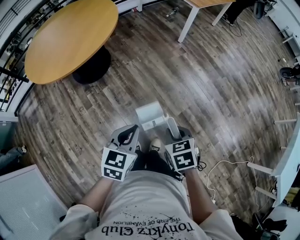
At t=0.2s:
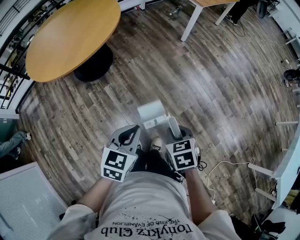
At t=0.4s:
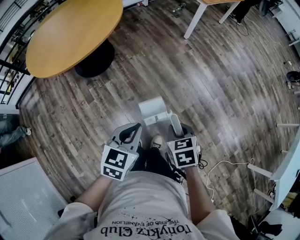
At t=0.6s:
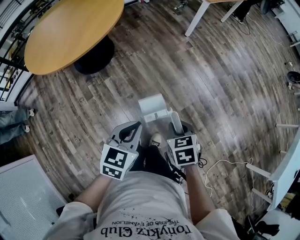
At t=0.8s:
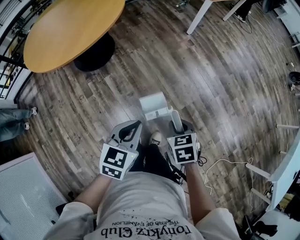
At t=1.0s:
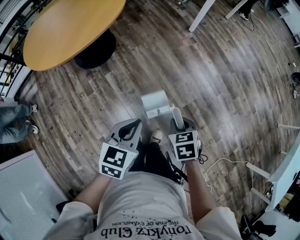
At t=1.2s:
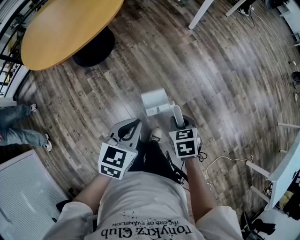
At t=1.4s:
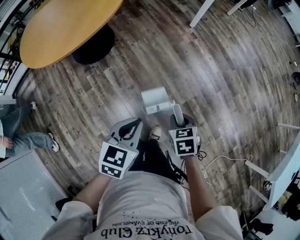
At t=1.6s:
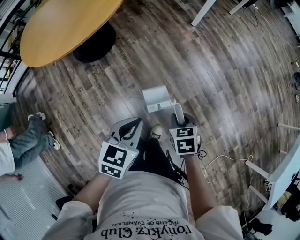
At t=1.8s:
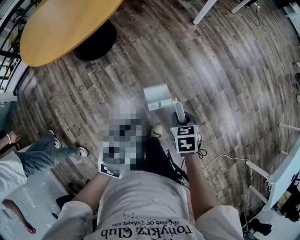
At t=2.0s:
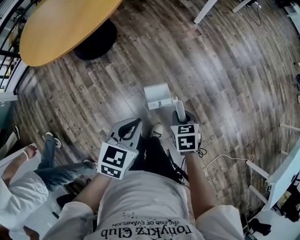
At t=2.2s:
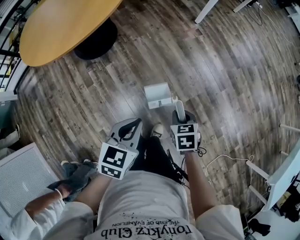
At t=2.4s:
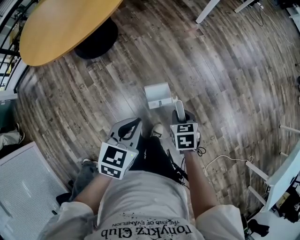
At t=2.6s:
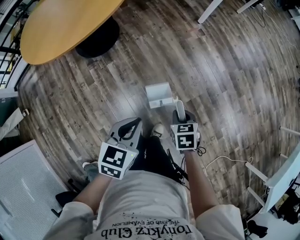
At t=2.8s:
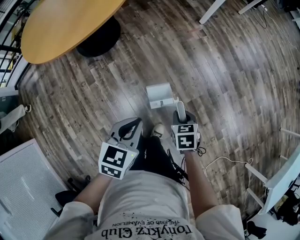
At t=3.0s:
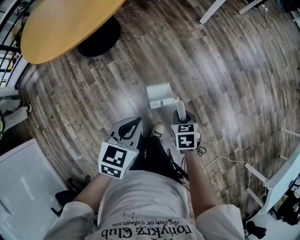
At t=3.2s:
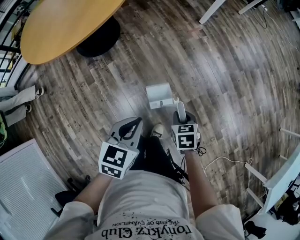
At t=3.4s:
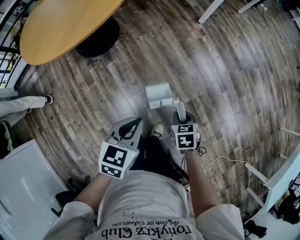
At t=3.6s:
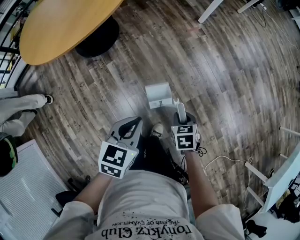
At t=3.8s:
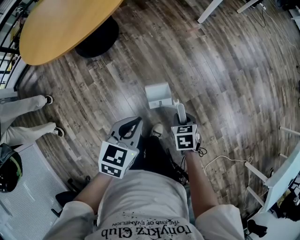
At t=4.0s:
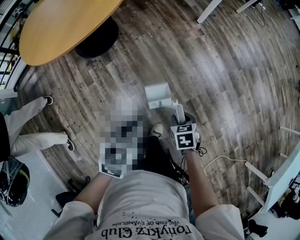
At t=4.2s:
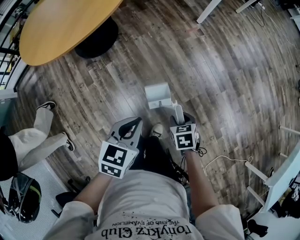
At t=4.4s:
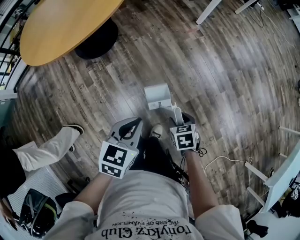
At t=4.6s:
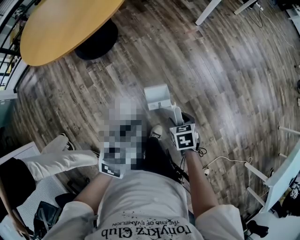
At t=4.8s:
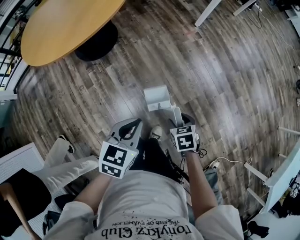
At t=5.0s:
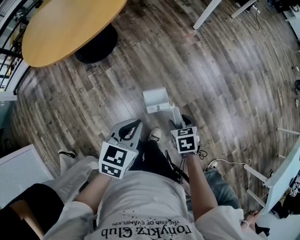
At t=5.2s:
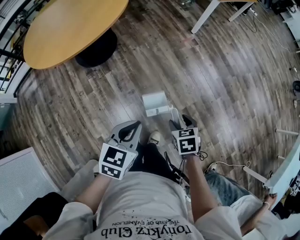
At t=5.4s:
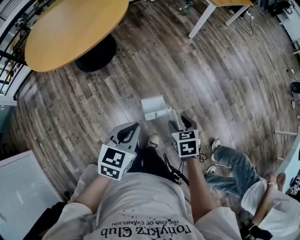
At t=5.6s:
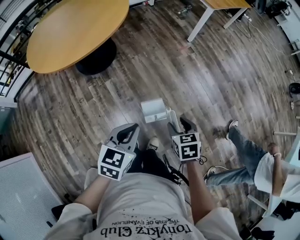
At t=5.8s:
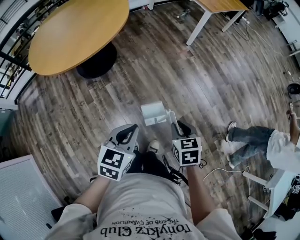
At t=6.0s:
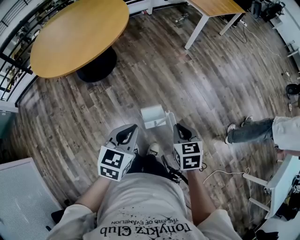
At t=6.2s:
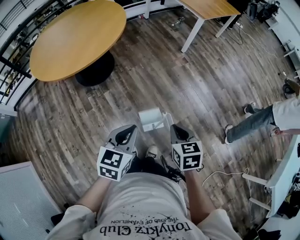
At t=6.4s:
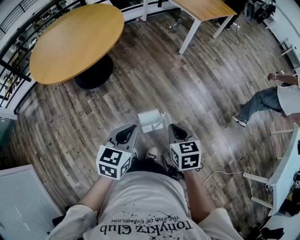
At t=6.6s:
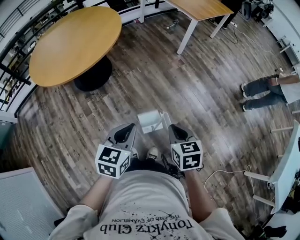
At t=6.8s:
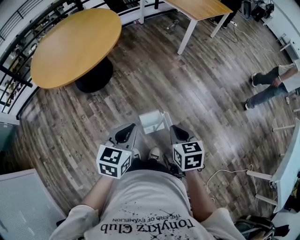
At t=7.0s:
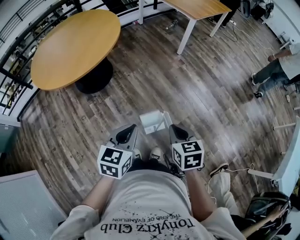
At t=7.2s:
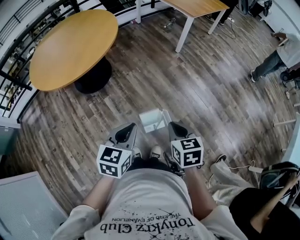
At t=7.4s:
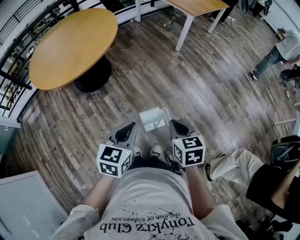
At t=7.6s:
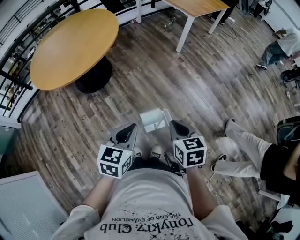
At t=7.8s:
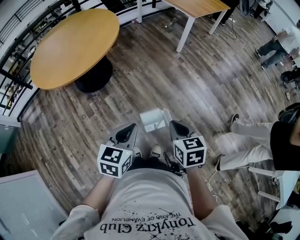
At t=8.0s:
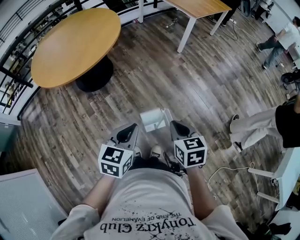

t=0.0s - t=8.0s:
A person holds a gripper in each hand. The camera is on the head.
t=0.0s - t=1.6s: The right gripper travels downward and forward by some 15 cm. The left gripper is displaced downward by roughly 5 cm.
t=1.6s - t=3.2s: The right gripper heads downward, covering roughly 5 cm.
t=3.2s - t=4.8s: The right gripper opens its fingers.
t=4.8s - t=6.4s: The left gripper travels upward by about 10 cm. The right gripper travels upward by roughly 20 cm, swivels some 20 degrees, and closes its fingers.
t=6.4s - t=8.0s: The grippers make only small movements.

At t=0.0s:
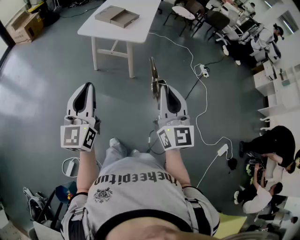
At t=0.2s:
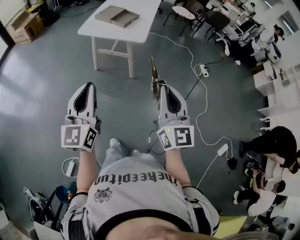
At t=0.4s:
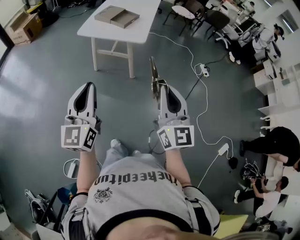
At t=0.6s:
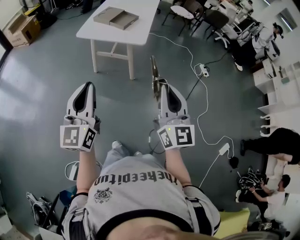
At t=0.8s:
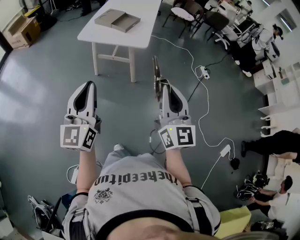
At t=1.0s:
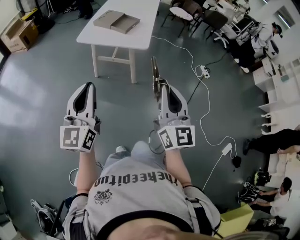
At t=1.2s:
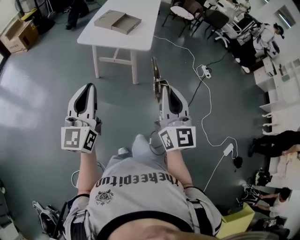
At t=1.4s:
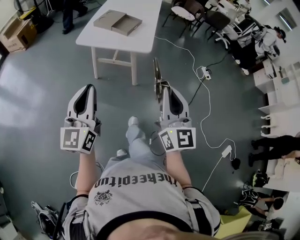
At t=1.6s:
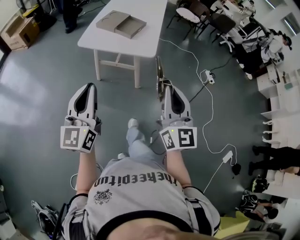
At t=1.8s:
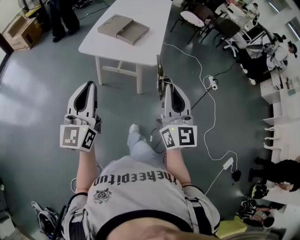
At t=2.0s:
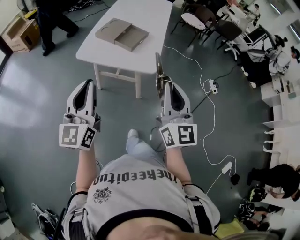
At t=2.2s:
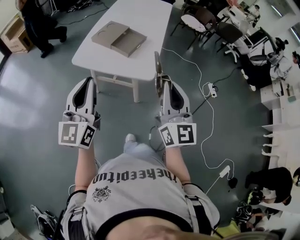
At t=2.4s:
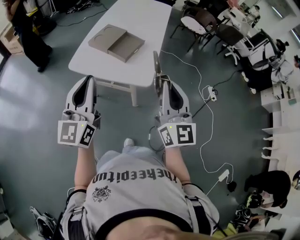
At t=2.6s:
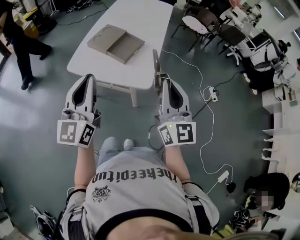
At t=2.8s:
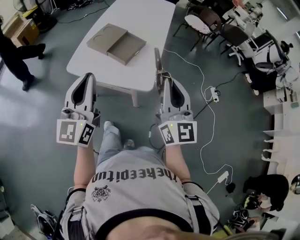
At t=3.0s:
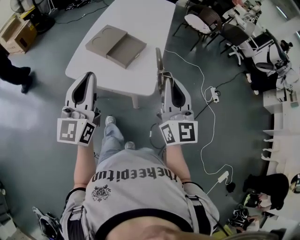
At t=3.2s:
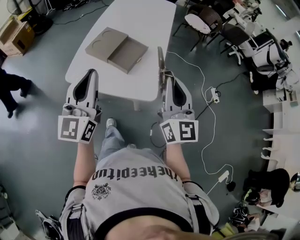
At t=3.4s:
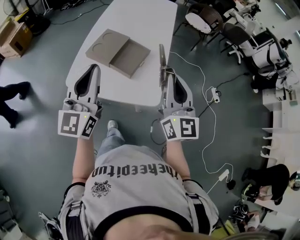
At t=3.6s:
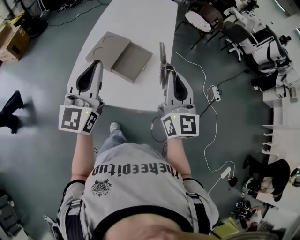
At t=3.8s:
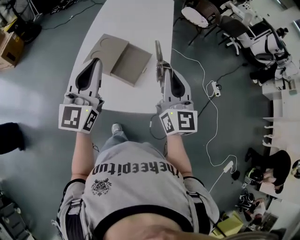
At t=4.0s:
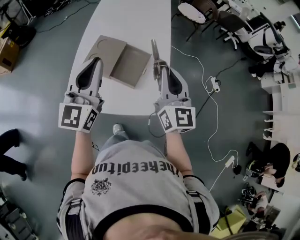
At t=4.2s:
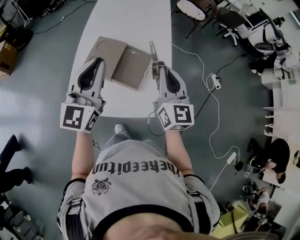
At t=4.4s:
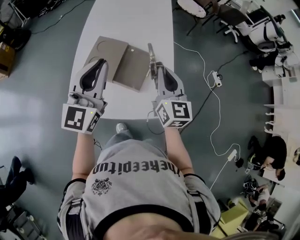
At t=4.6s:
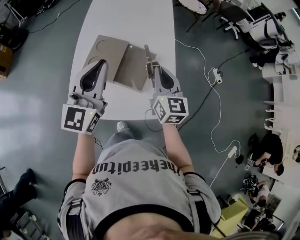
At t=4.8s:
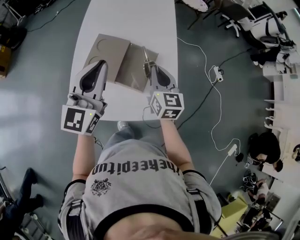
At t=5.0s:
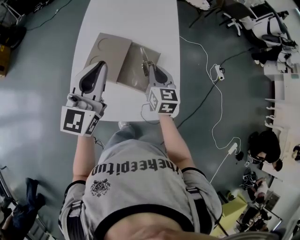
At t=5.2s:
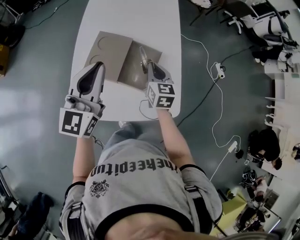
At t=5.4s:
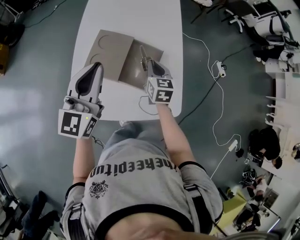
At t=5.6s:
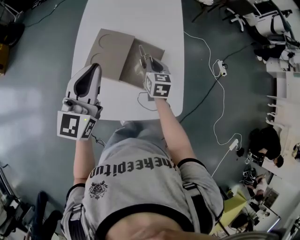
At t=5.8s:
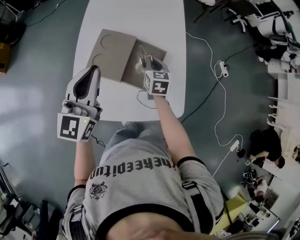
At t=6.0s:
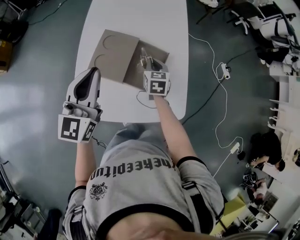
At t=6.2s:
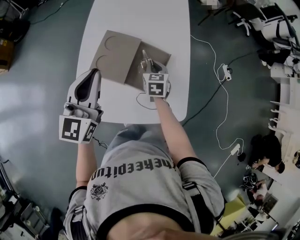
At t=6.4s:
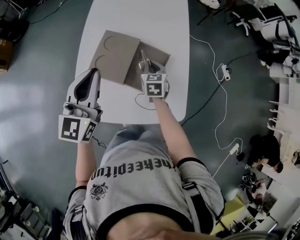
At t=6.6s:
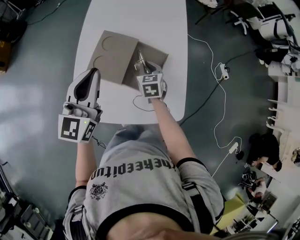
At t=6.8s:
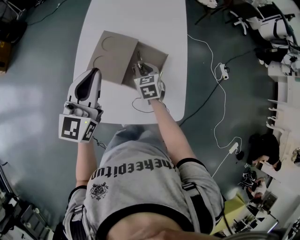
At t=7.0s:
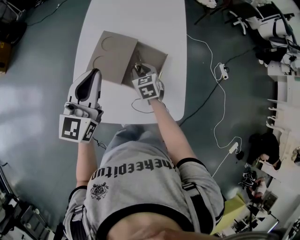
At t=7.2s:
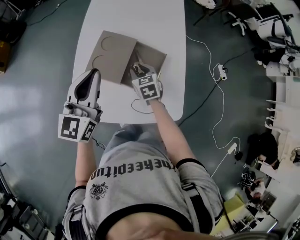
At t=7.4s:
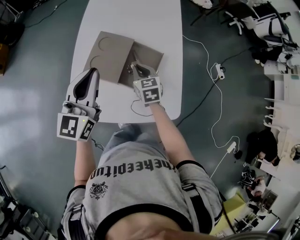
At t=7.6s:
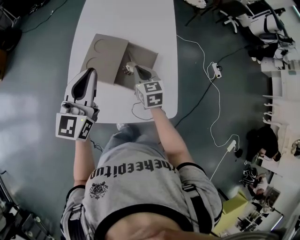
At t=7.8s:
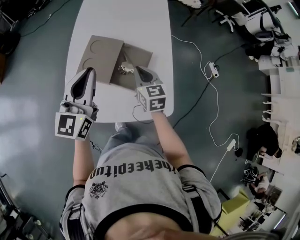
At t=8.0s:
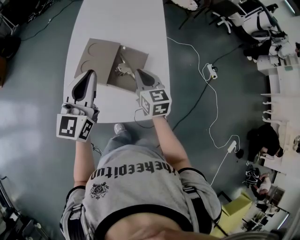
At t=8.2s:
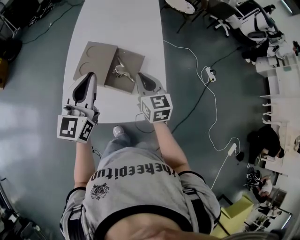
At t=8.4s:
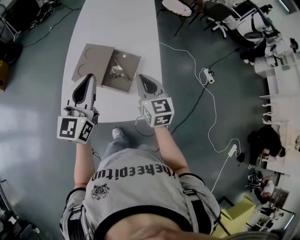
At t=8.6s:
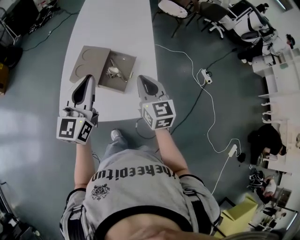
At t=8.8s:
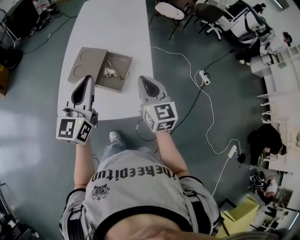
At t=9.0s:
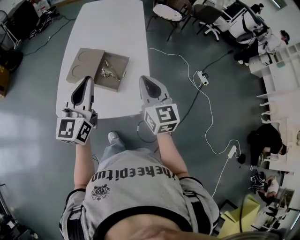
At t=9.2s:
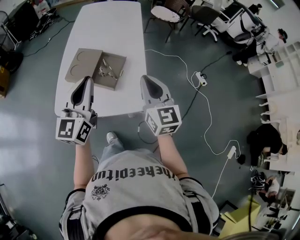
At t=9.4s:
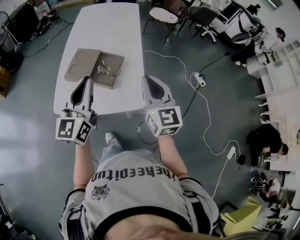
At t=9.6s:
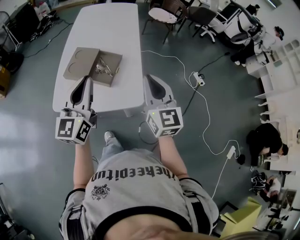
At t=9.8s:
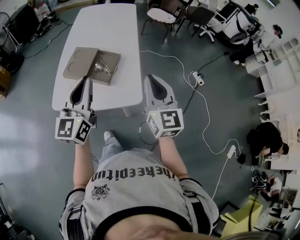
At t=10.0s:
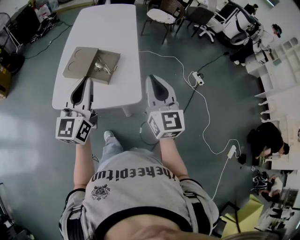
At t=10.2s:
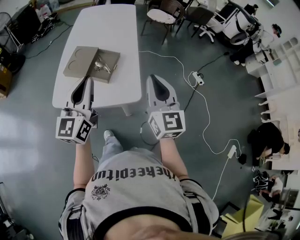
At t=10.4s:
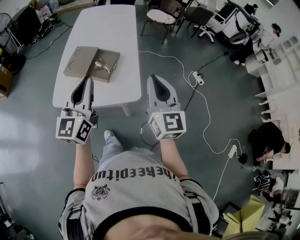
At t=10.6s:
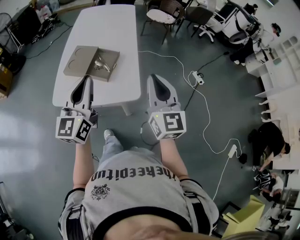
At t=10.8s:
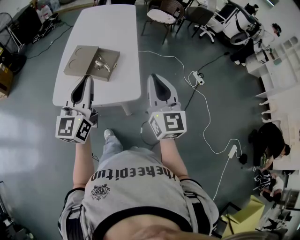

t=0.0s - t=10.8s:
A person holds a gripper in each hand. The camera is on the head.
t=0.0s - t=1.6s: Both grippers travel together forward, approximately 20 cm.
t=1.6s - t=3.0s: The two grippers go some 35 cm forward.
t=3.0s - t=4.6s: The right gripper moves forward, to the left and downward, about 35 cm, and swivels approximately 30 degrees. Meanwhile the left gripper heads forward, covering roughly 30 cm, and rotates approximately 20 degrees.
t=4.6s - t=6.2s: The right gripper heads downward and forward, covering roughly 20 cm, and swivels roughly 30 degrees. Meanwhile the left gripper goes approximately 10 cm to the left and downward.
t=6.2s - t=7.8s: The right gripper goes roughly 10 cm upward and backward, and opens and closes again.
t=7.8s - t=9.2s: The right gripper is displaced upward, backward and to the right by some 30 cm, and turns by about 20 degrees; the left gripper moves backward, to the right and upward, some 20 cm.
t=9.2s - t=10.8s: The left gripper shifts approximately 10 cm backward and to the right; the right gripper shifts roughly 15 cm backward, to the right and upward.

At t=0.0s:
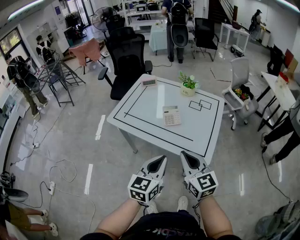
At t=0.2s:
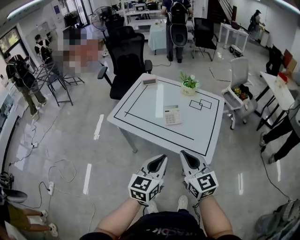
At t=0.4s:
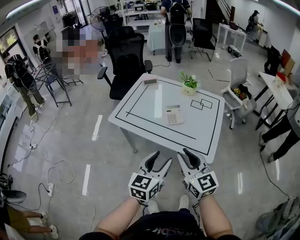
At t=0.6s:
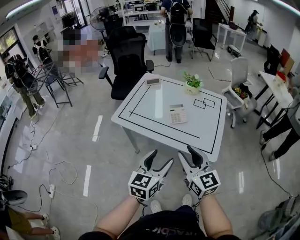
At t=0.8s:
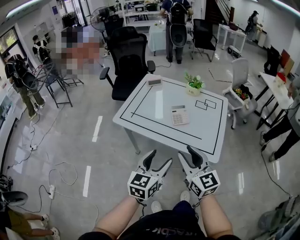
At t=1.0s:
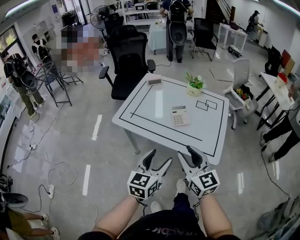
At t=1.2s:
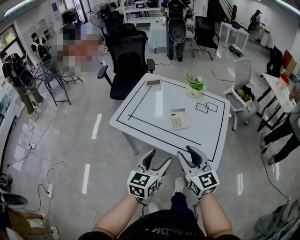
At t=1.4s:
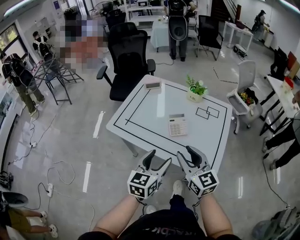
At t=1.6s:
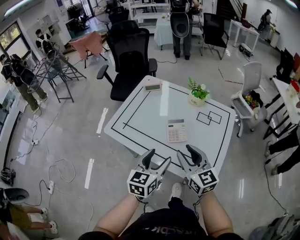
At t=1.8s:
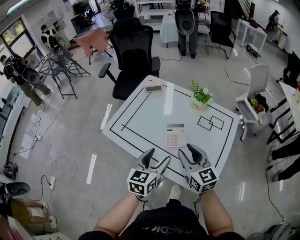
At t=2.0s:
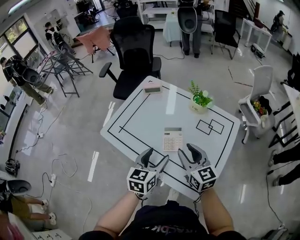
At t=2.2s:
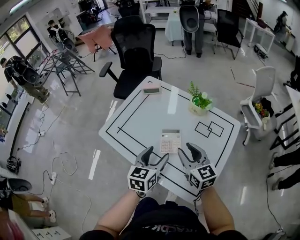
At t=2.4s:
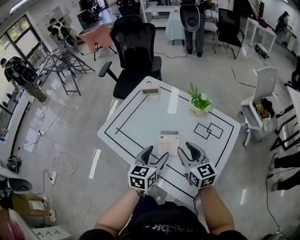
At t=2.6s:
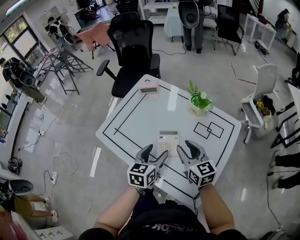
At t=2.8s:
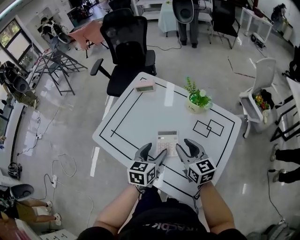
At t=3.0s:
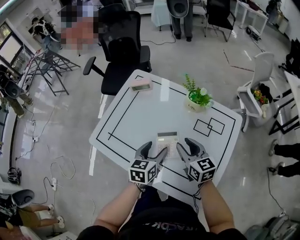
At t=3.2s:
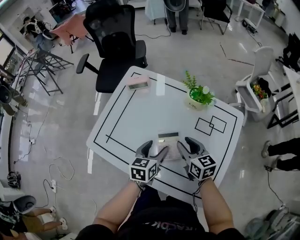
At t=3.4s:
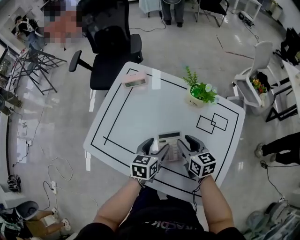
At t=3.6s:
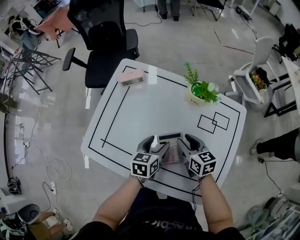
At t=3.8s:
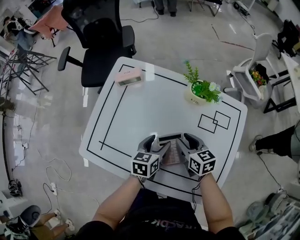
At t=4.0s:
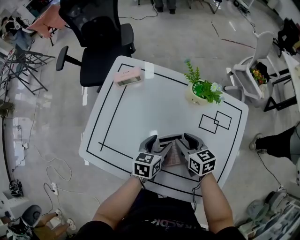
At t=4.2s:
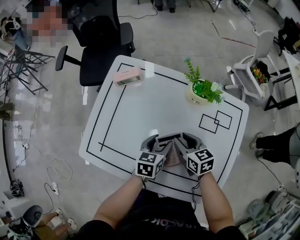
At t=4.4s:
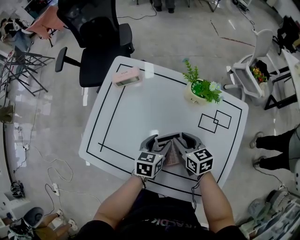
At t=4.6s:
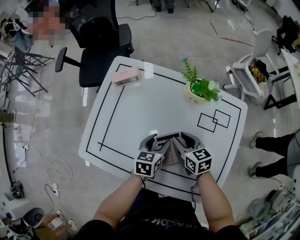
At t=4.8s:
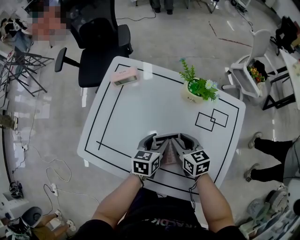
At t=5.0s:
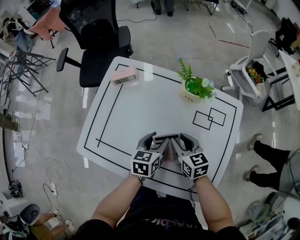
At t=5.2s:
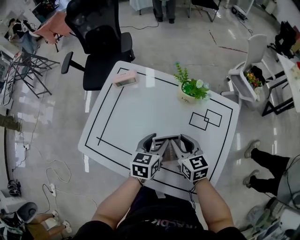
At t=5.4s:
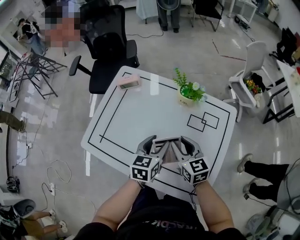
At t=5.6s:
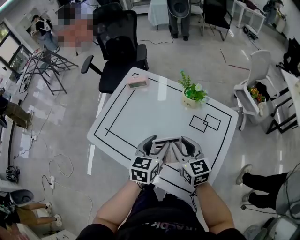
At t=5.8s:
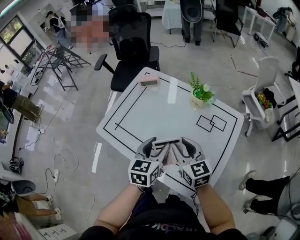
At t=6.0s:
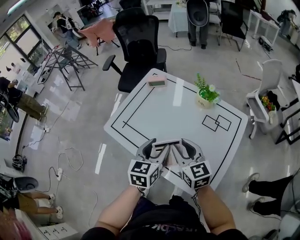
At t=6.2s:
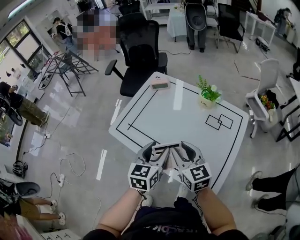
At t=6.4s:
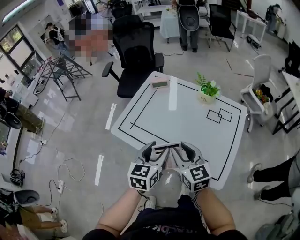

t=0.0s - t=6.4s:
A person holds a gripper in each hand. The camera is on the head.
t=0.0s - t=1.6s: Both grippers travel together forward, some 15 cm. The left gripper opens. The right gripper opens its fingers.
t=1.6s - t=3.2s: Both grippers travel together forward and downward, approximately 25 cm. The right gripper swivels approximately 20 degrees.
t=3.2s - t=4.8s: The left gripper travels downward and forward by some 10 cm. The right gripper goes about 5 cm downward.
t=4.8s - t=6.4s: Both grippers travel together backward, upward and to the left, roughly 30 cm. The right gripper swivels some 30 degrees. Meanwhile the left gripper swivels about 30 degrees.
